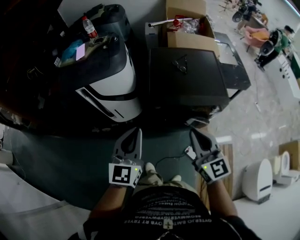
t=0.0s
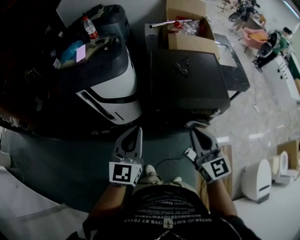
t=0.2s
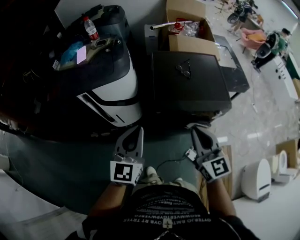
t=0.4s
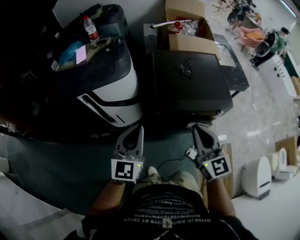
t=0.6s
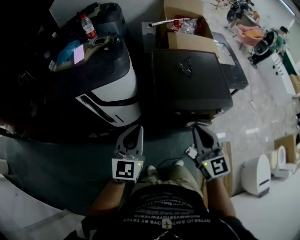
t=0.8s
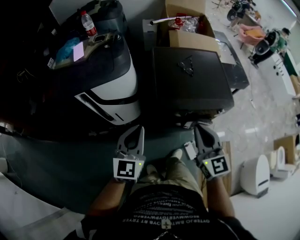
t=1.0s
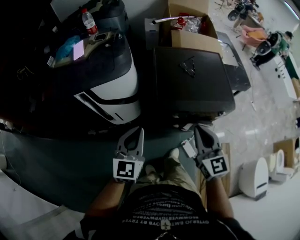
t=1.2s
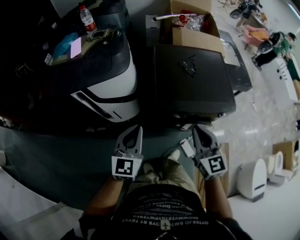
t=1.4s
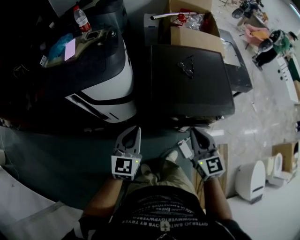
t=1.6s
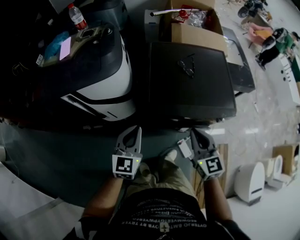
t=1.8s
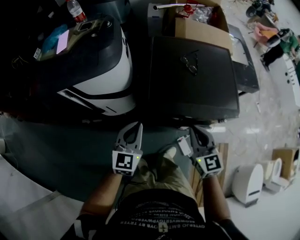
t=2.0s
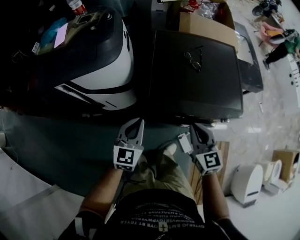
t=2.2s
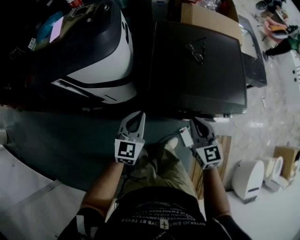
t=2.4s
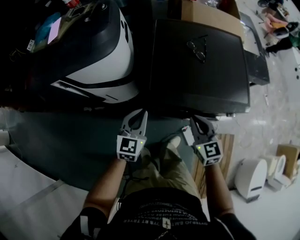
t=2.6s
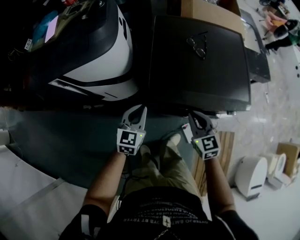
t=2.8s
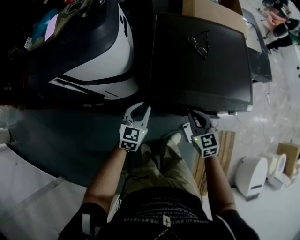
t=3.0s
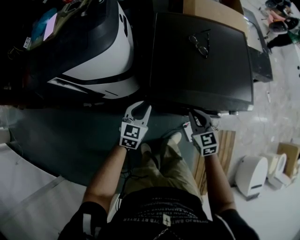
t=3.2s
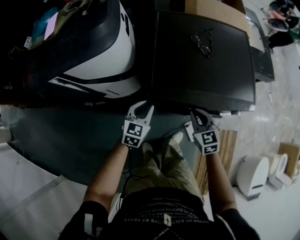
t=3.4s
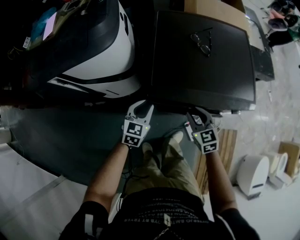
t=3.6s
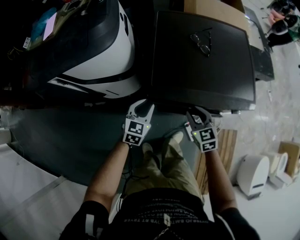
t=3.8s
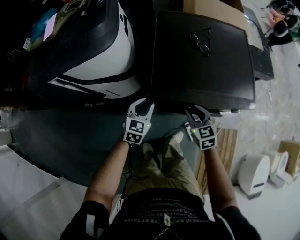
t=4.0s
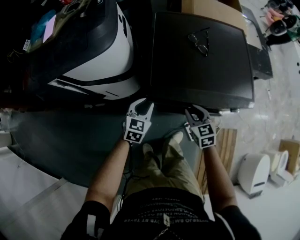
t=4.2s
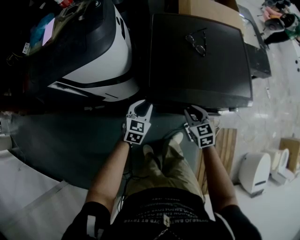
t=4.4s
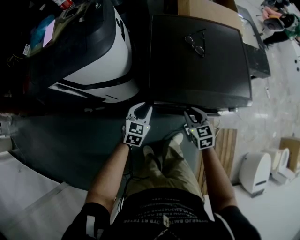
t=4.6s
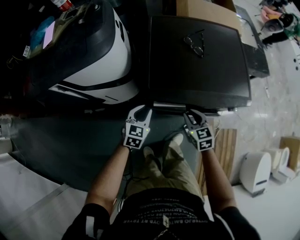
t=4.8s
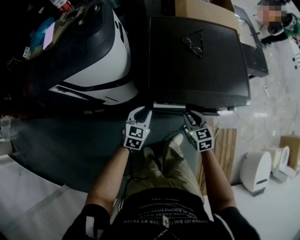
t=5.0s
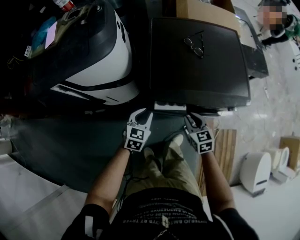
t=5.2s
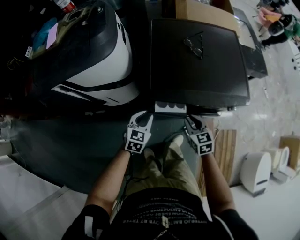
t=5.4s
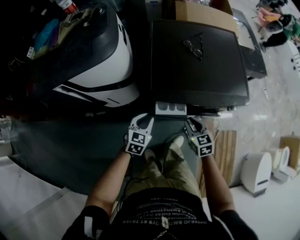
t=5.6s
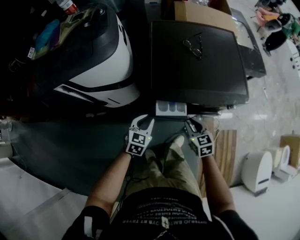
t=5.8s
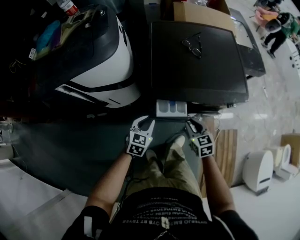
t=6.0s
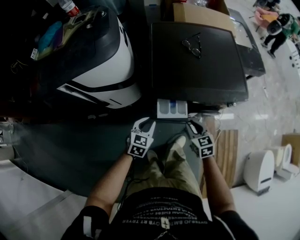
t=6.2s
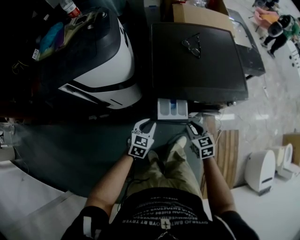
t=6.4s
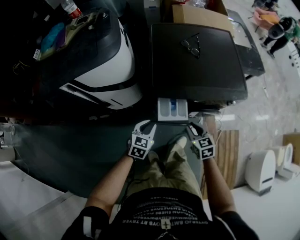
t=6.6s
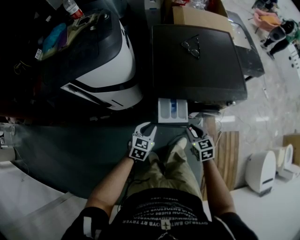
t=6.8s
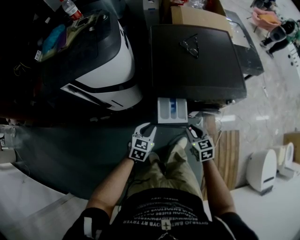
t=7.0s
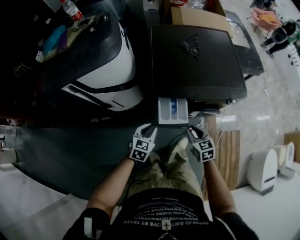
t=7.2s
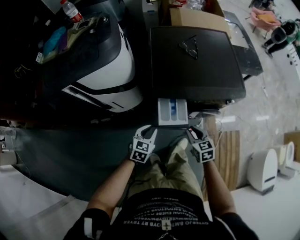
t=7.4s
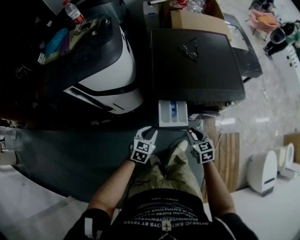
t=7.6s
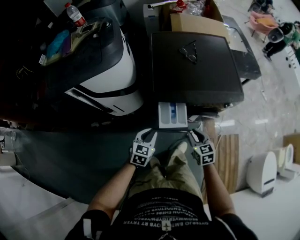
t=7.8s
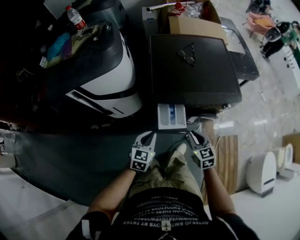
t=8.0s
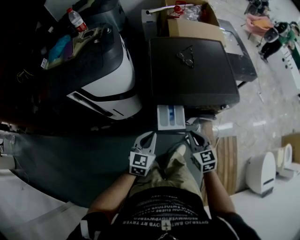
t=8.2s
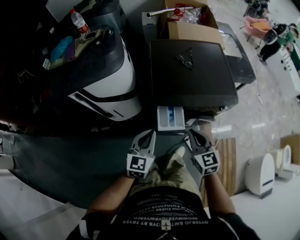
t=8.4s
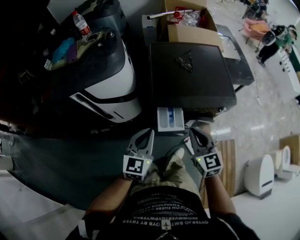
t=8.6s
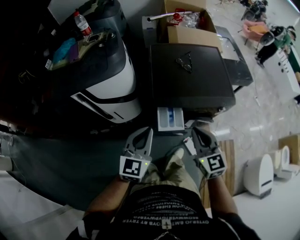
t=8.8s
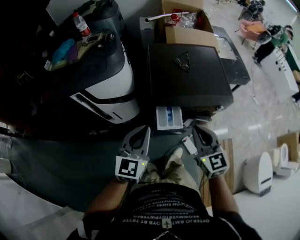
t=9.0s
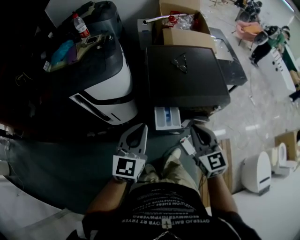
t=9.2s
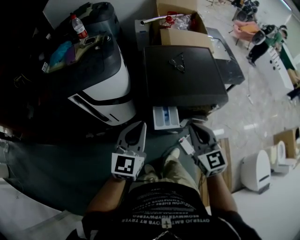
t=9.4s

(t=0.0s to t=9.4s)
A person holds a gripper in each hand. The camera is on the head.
t=0.0s - t=1.6s: The two grippers go some 15 cm forward and downward.
t=1.6s - t=3.2s: Both grippers move downward, roughly 20 cm.
t=3.2s - t=4.8s: The grippers make only small movements.
t=4.8s - t=6.2s: The two grippers go approximately 10 cm backward.
t=6.2s - t=7.8s: The left gripper goes approximately 5 cm backward, while the right gripper changes place by some 5 cm.
t=7.8s - t=9.4s: Both grippers move upward, approximately 30 cm. The left gripper points its fingers approximately 30 degrees further upward, while the right gripper turns by some 30 degrees.

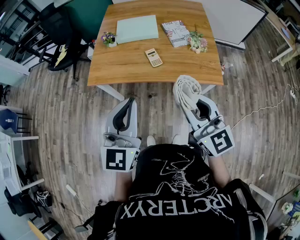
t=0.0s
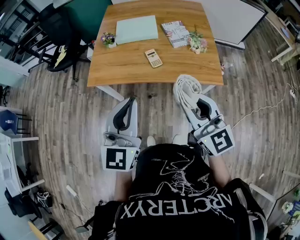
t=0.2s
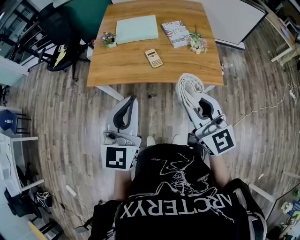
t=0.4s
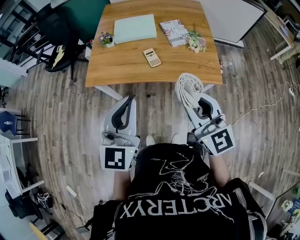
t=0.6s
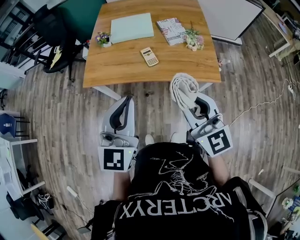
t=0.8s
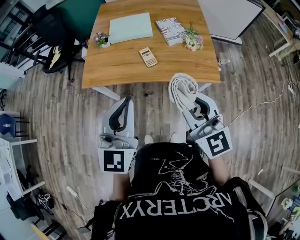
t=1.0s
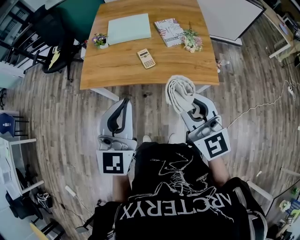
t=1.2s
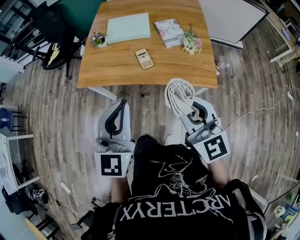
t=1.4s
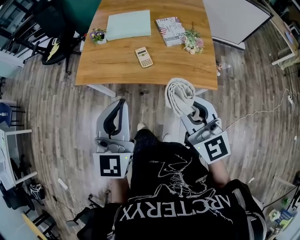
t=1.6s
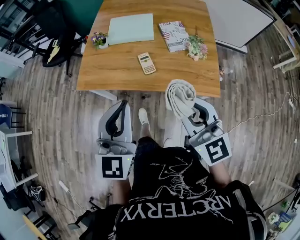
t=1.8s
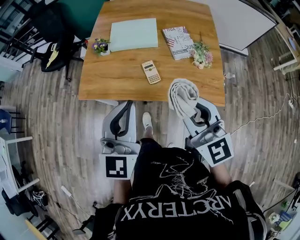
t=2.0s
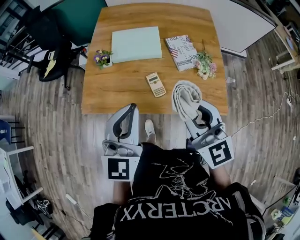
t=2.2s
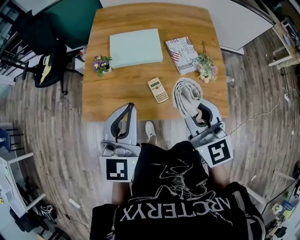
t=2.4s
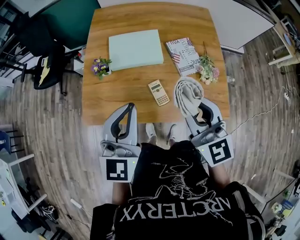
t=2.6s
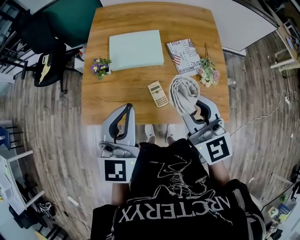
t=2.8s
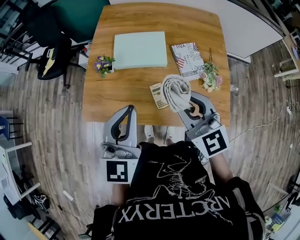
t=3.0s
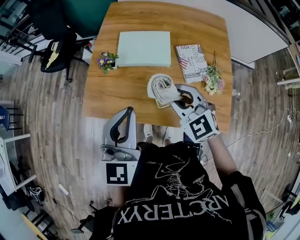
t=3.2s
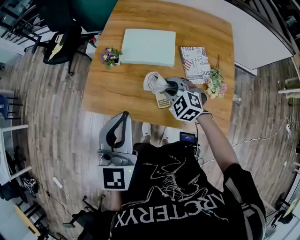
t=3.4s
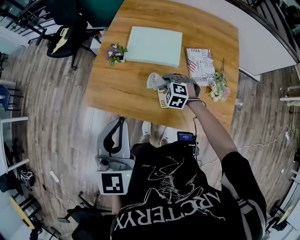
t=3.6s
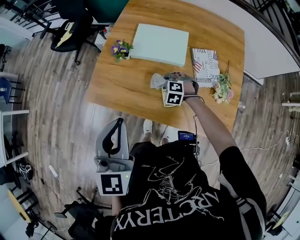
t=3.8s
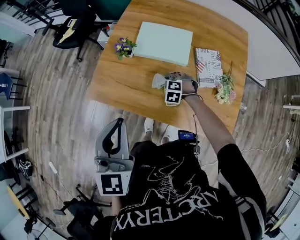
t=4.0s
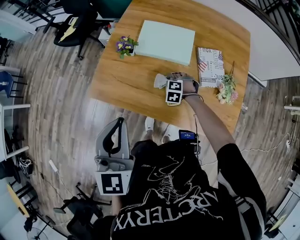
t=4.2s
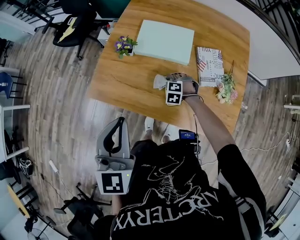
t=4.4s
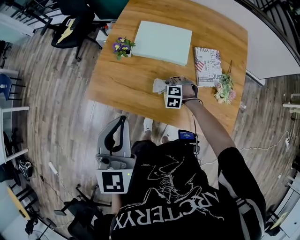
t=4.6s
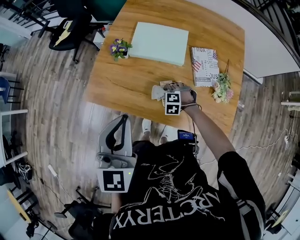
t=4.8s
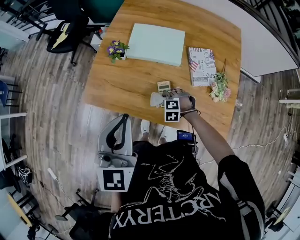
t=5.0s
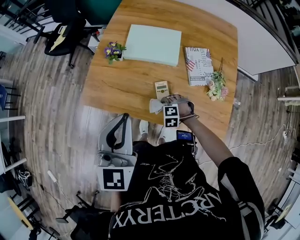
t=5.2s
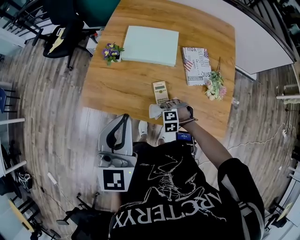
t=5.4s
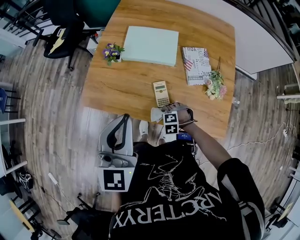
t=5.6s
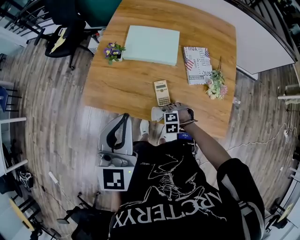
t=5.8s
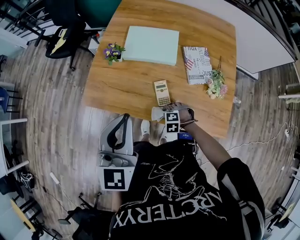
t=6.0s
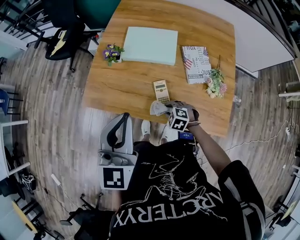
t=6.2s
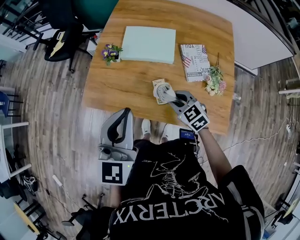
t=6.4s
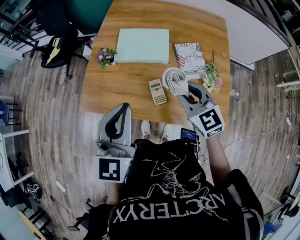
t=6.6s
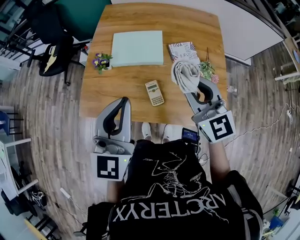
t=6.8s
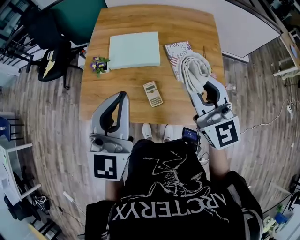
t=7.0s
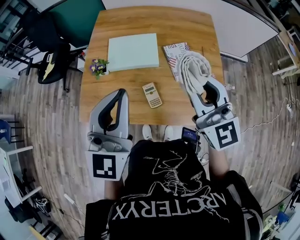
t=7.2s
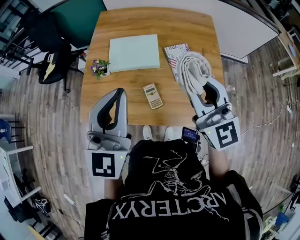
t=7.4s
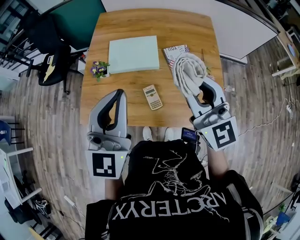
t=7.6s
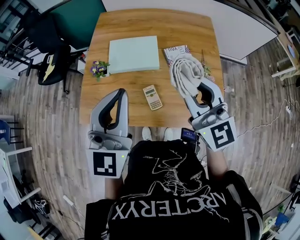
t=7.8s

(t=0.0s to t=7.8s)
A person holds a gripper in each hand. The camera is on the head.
t=0.0s - t=1.6s: Both grippers travel together to the right, about 5 cm.
t=1.6s - t=3.2s: Both grippers travel together forward, about 30 cm. The right gripper swivels approximately 30 degrees.
t=3.2s - t=4.6s: The left gripper heads to the left, covering roughly 5 cm. The right gripper goes about 30 cm downward, and angles its fingers downward, by some 40 degrees.
t=4.6s - t=6.2s: The right gripper shifts by about 15 cm, and rotates roughly 20 degrees.
t=6.2s - t=7.8s: The left gripper ends up some 10 cm from where it was, while the right gripper is displaced upward by about 40 cm, and tilts its fingers roughly 70 degrees upward.

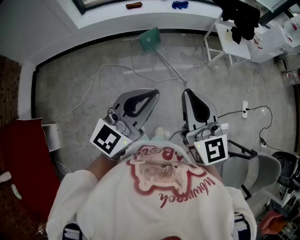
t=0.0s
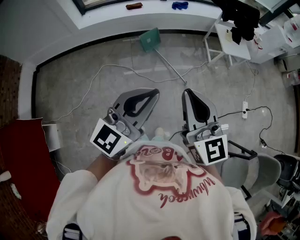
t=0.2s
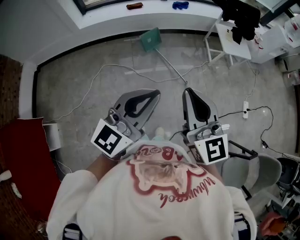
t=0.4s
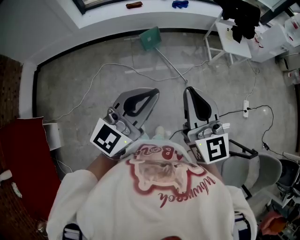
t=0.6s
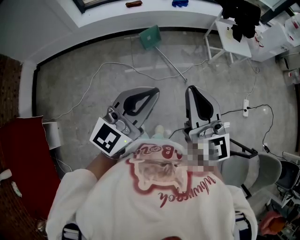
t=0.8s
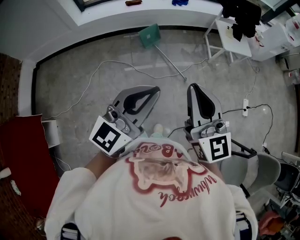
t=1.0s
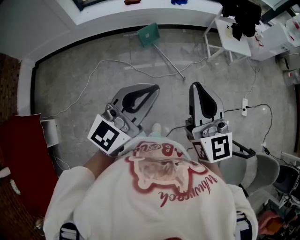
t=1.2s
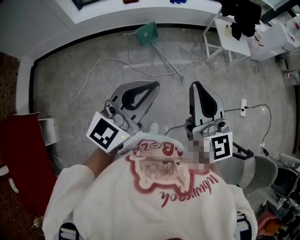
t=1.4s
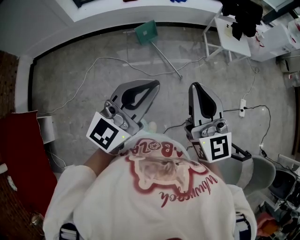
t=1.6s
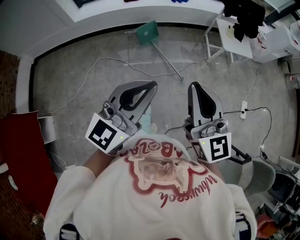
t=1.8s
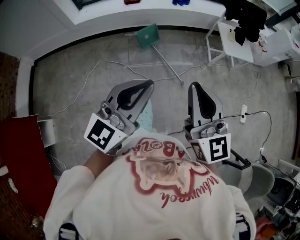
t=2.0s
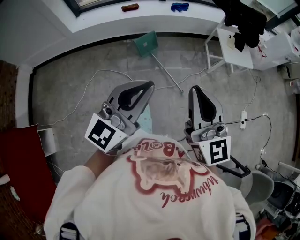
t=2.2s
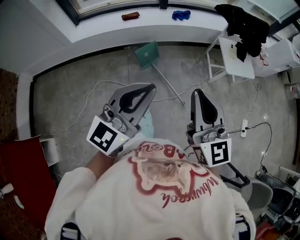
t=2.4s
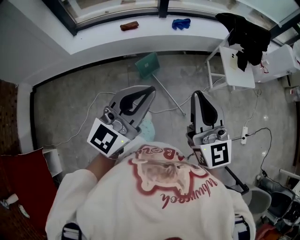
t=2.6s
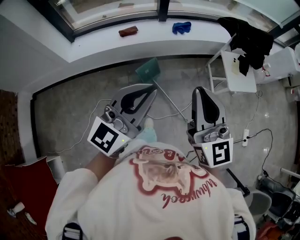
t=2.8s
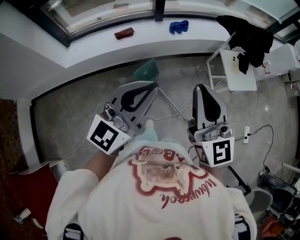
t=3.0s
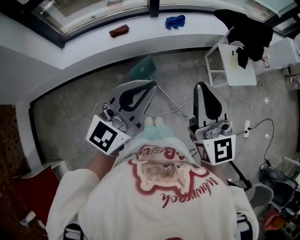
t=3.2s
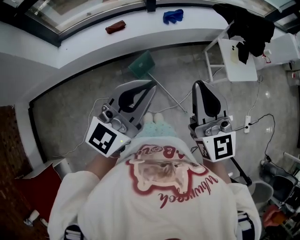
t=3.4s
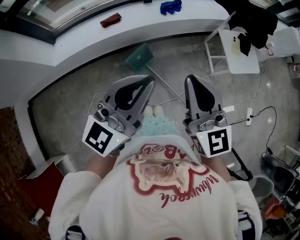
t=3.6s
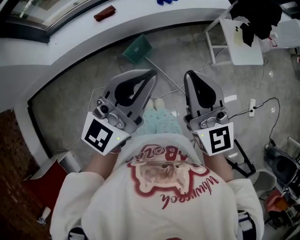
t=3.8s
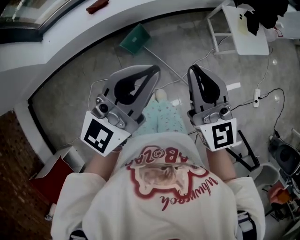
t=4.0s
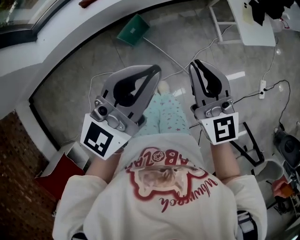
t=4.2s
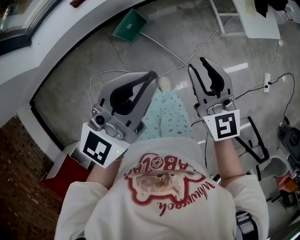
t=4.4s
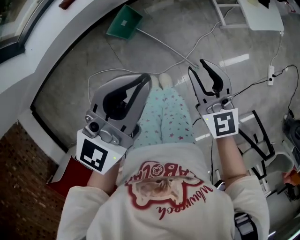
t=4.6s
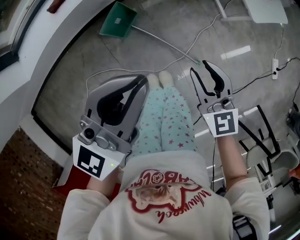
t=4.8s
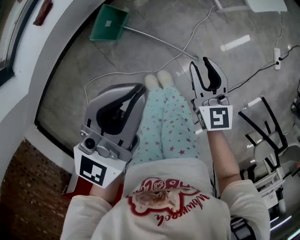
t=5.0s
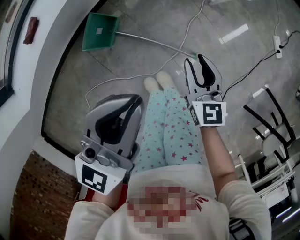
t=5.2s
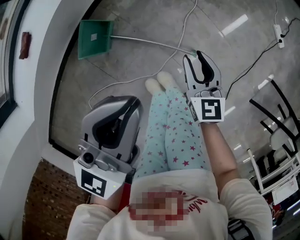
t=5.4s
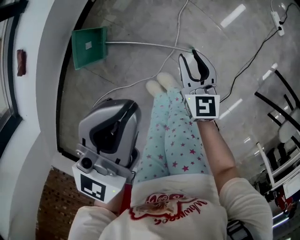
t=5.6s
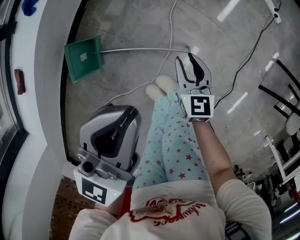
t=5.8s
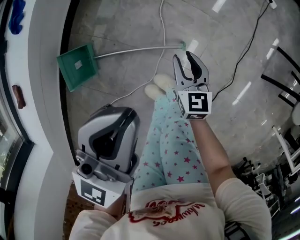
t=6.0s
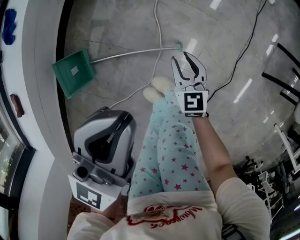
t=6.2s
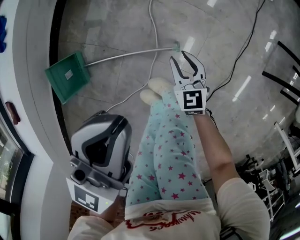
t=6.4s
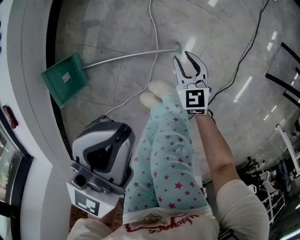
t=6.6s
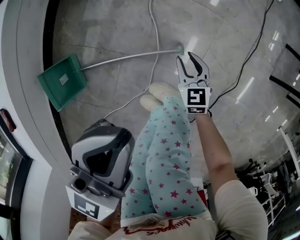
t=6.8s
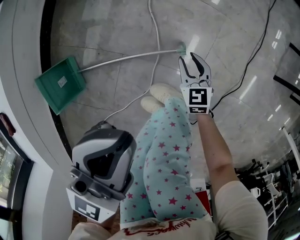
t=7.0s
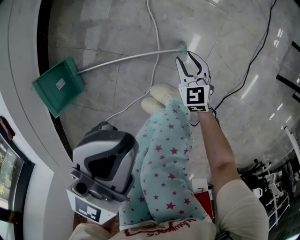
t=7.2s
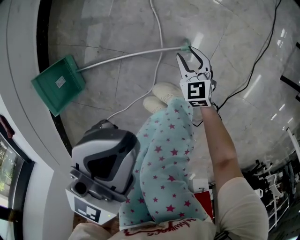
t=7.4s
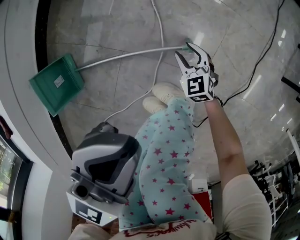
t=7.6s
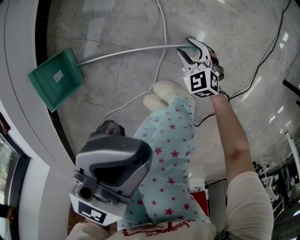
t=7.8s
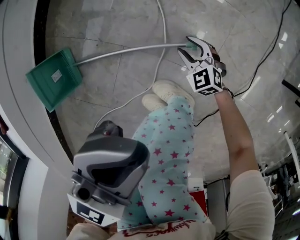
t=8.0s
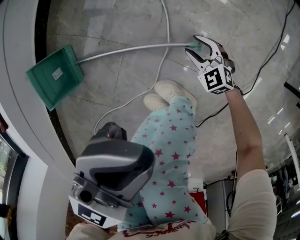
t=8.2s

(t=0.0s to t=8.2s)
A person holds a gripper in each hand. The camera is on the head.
t=0.0s - t=1.6s: Both grippers travel together to the right, approximately 5 cm.
t=1.6s - t=3.2s: The pair of grippers is taken forward, approximately 50 cm.
t=3.2s - t=5.0s: The left gripper is displaced downward, forward and to the right by roughly 30 cm, and changes its angle by about 20 degrees, while the right gripper heads downward, covering some 50 cm, angles its fingers downward, by roughly 30 degrees, and opens up.
t=5.0s - t=6.6s: The left gripper heads downward, covering roughly 20 cm, and swivels roughly 30 degrees. The right gripper travels downward by approximately 35 cm, and turns by about 30 degrees.
t=6.6s - t=8.2s: The right gripper heads downward, covering some 20 cm, and rotates some 40 degrees, while the left gripper shifts some 10 cm downward.
